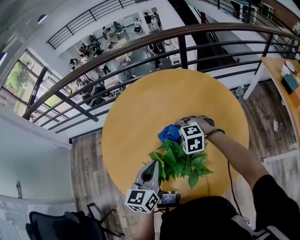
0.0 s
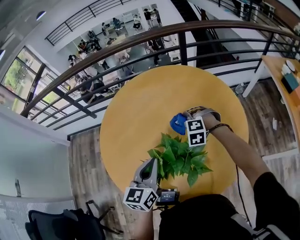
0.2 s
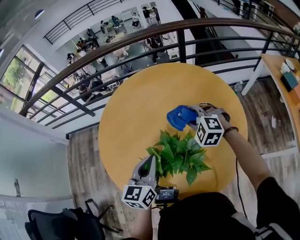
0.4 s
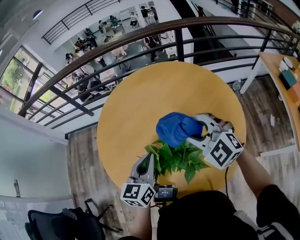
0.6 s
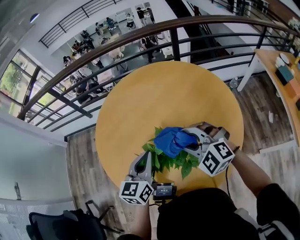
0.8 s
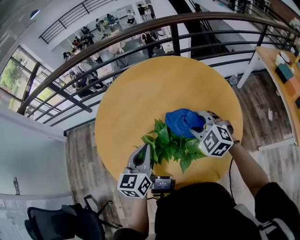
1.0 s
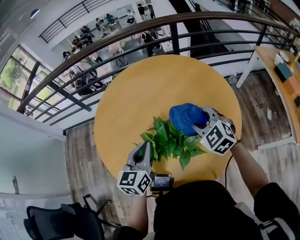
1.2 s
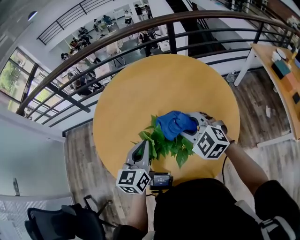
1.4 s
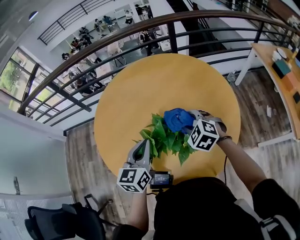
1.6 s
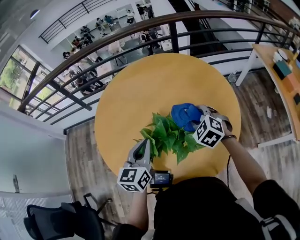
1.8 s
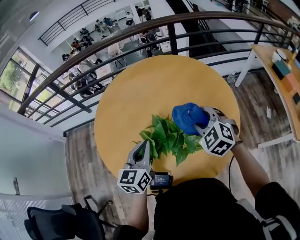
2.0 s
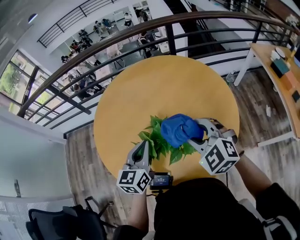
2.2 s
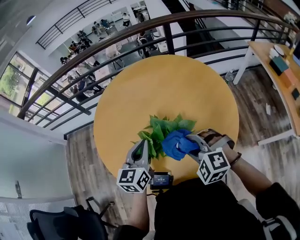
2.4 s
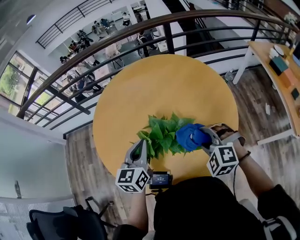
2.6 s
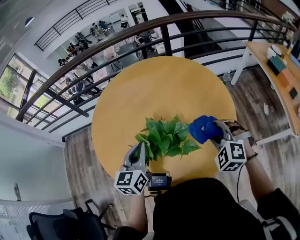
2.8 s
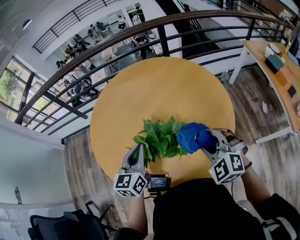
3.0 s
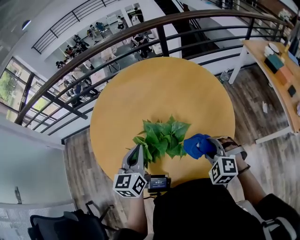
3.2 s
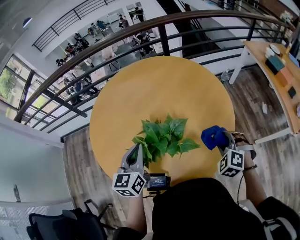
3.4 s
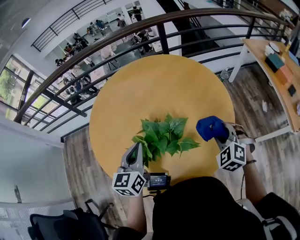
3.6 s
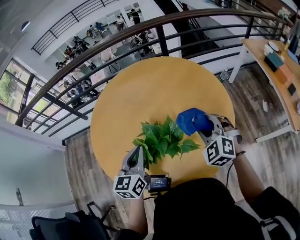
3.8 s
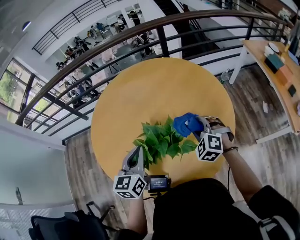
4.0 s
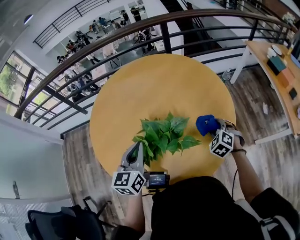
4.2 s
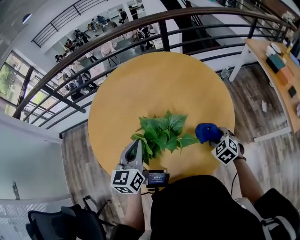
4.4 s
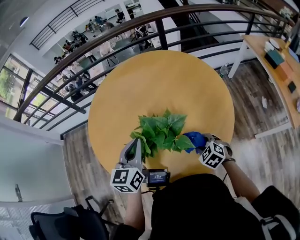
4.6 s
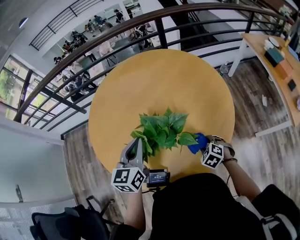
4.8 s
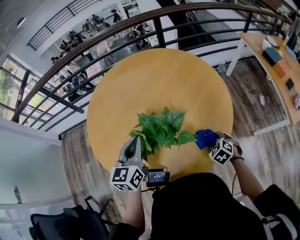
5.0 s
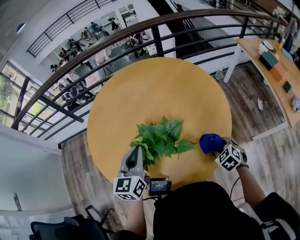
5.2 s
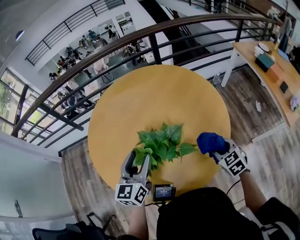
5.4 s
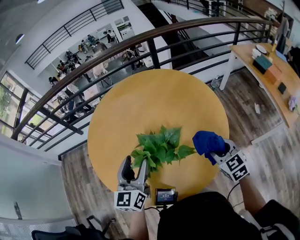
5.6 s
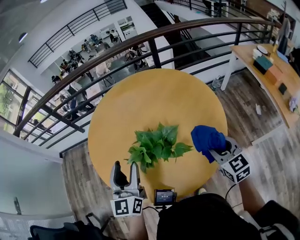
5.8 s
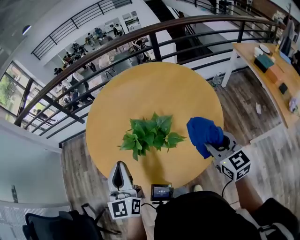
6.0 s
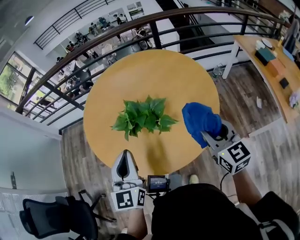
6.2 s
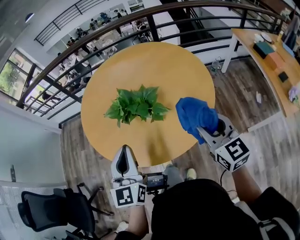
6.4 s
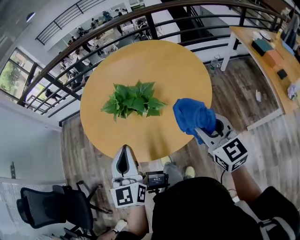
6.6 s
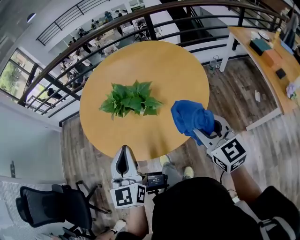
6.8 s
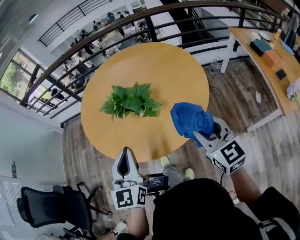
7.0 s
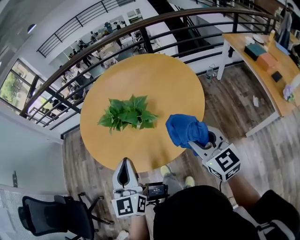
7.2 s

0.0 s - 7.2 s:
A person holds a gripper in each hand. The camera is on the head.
0.0 s - 1.4 s: The right gripper is displaced upward and backward by approximately 15 cm, and swivels roughly 30 degrees.
1.4 s - 2.8 s: The right gripper moves left and right over about 15 cm, changing direction 2 times, and rotates about 30 degrees.
2.8 s - 4.4 s: The right gripper swings up and down, approximately 15 cm each way, with 2 reversals, and changes its angle by some 30 degrees.
4.4 s - 5.8 s: The left gripper moves upward and backward, roughly 10 cm, and opens; the right gripper is displaced upward by approximately 15 cm, and changes its angle by some 40 degrees.
5.8 s - 7.2 s: The left gripper shifts approximately 20 cm backward, and closes; the right gripper moves backward and upward, approximately 20 cm.

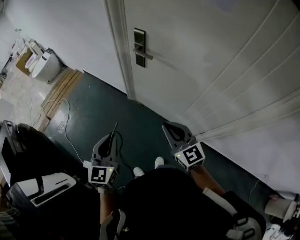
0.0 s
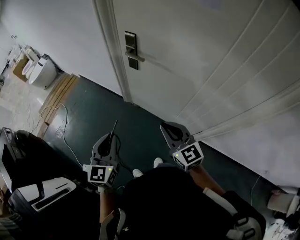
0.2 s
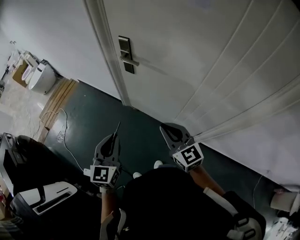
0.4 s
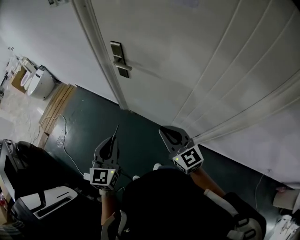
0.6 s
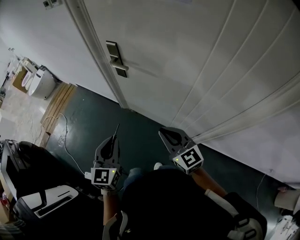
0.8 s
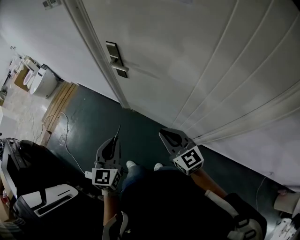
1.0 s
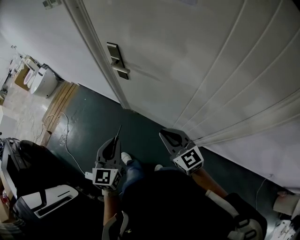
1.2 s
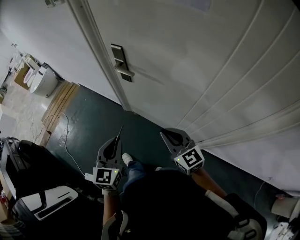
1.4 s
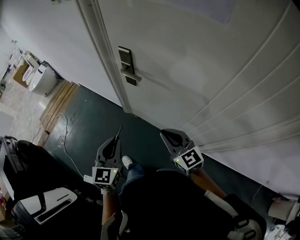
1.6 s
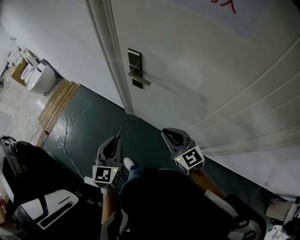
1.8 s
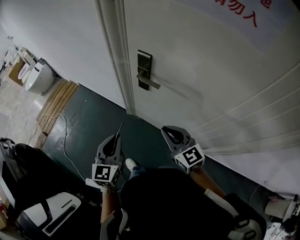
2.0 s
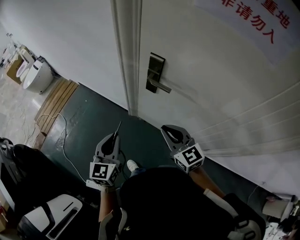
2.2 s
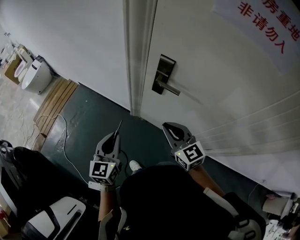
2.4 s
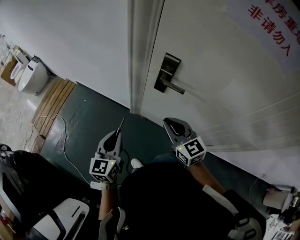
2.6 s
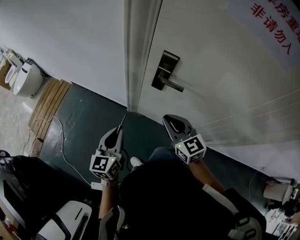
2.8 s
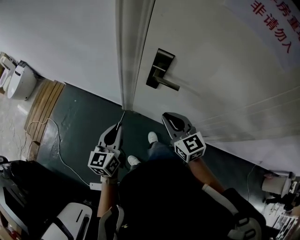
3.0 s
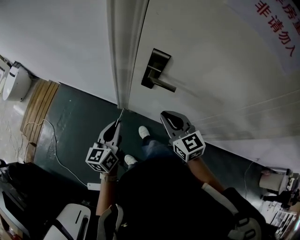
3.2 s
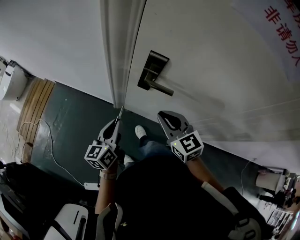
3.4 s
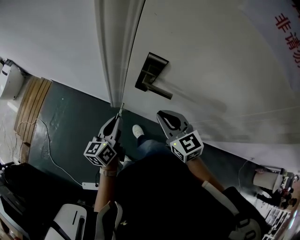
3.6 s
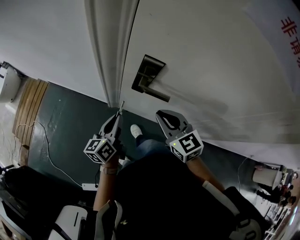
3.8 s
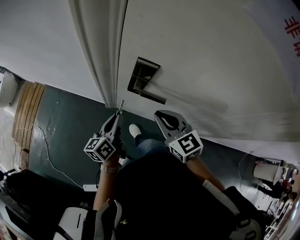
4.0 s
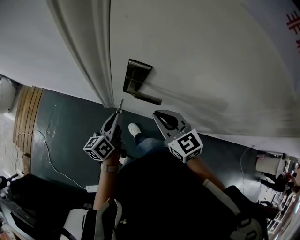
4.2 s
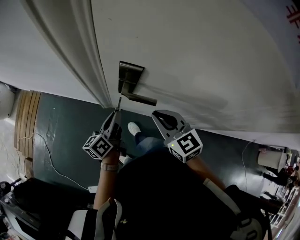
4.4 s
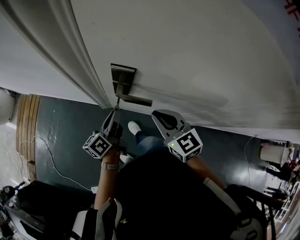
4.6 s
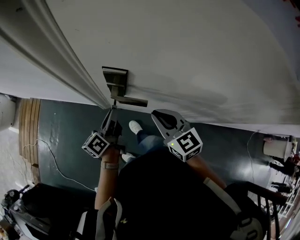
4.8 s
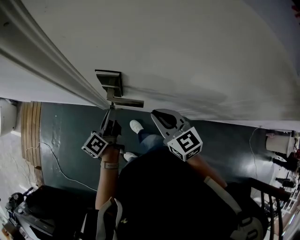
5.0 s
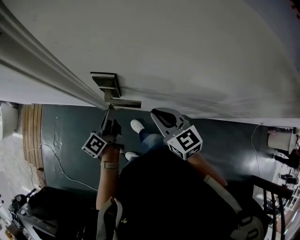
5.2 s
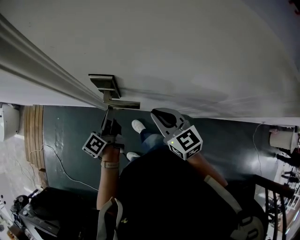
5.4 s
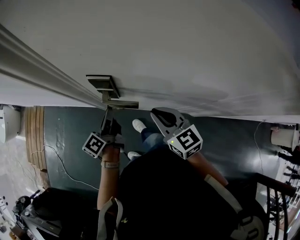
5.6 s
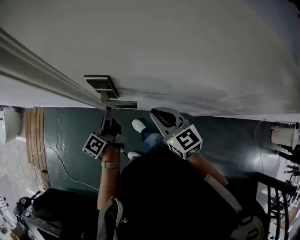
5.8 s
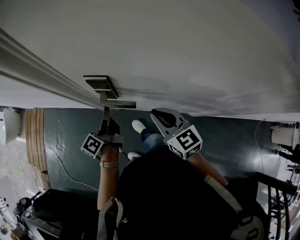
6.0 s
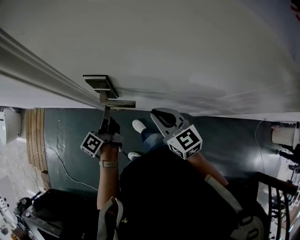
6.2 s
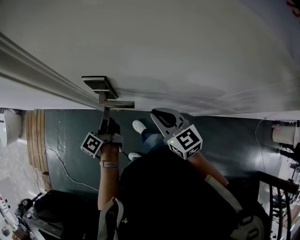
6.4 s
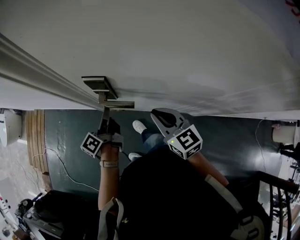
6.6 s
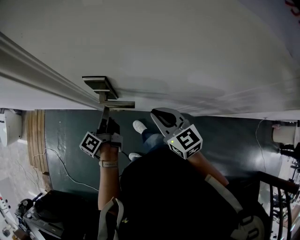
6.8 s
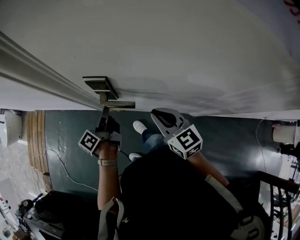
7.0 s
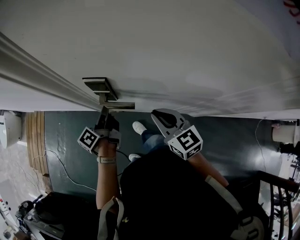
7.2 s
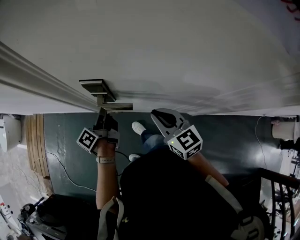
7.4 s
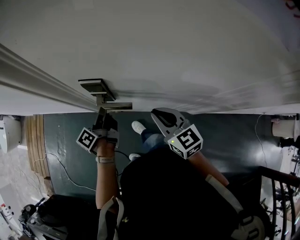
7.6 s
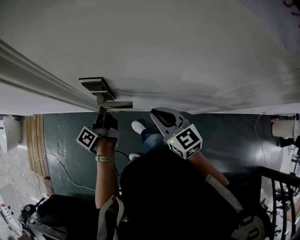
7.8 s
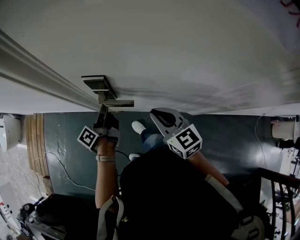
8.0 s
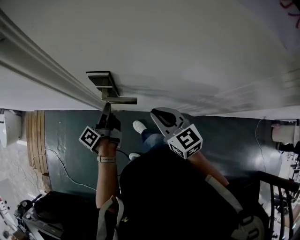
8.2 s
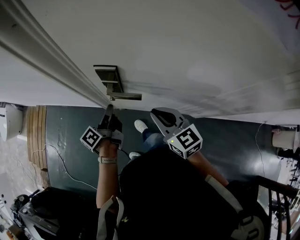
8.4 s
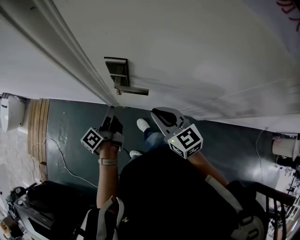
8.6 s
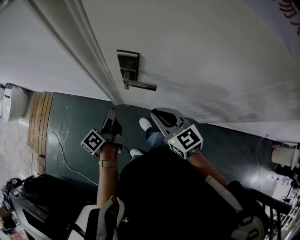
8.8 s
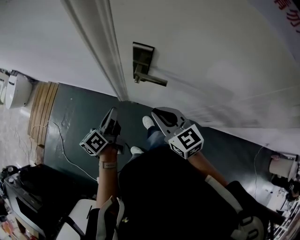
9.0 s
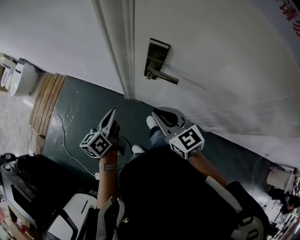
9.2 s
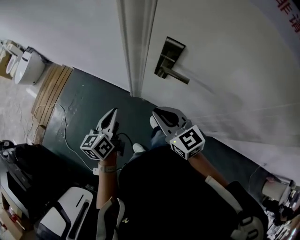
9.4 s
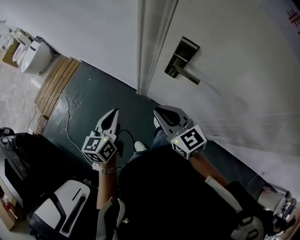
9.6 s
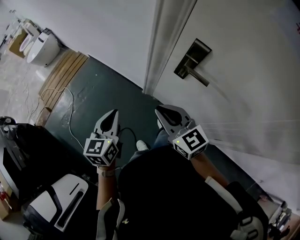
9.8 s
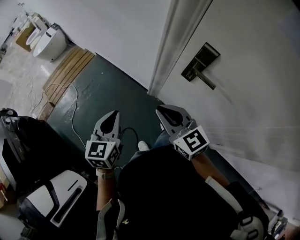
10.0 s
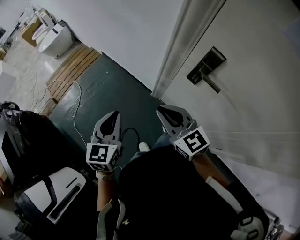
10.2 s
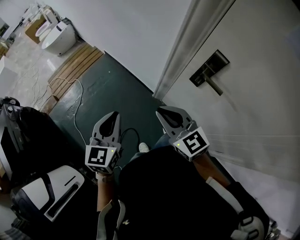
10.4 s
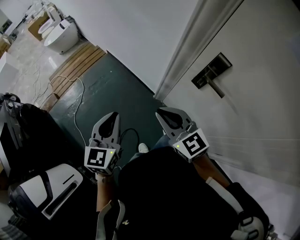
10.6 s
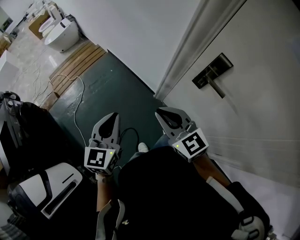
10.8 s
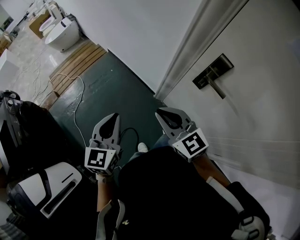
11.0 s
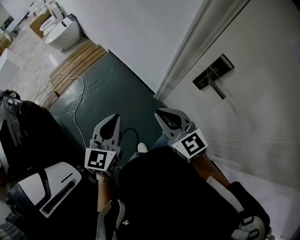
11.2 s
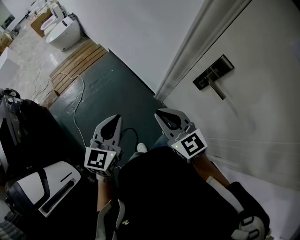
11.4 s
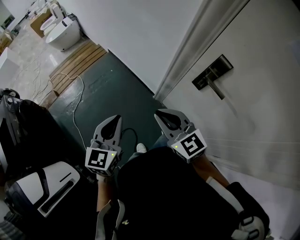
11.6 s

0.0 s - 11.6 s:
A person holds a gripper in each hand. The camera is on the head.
0.0 s - 1.4 s: The two grippers go approximately 15 cm to the right and forward.
1.4 s - 2.8 s: Both grippers move to the left and forward, about 30 cm. The left gripper changes its angle by approximately 20 degrees.
2.8 s - 4.4 s: The left gripper shifts approximately 25 cm forward, to the right and downward, and changes its angle by approximately 40 degrees. The right gripper travels forward and to the right by roughly 15 cm.
4.4 s - 5.8 s: The right gripper is displaced to the right by roughly 5 cm.
5.8 s - 7.2 s: The grippers stay close to where they were, moving slightly.
7.2 s - 8.8 s: The left gripper goes approximately 10 cm backward and to the left; the right gripper shifts some 10 cm to the left.
8.8 s - 10.2 s: The right gripper shifts by approximately 25 cm, and changes its angle by approximately 30 degrees, while the left gripper moves approximately 30 cm, and rotates around the line of its fingers by roughly 60 degrees, clockwise from behind.
10.2 s - 11.6 s: There are only small adjustments of the grippers.

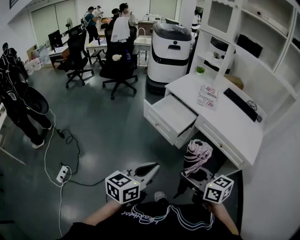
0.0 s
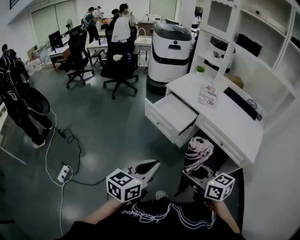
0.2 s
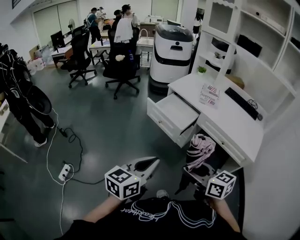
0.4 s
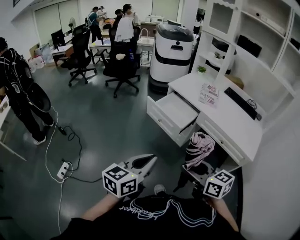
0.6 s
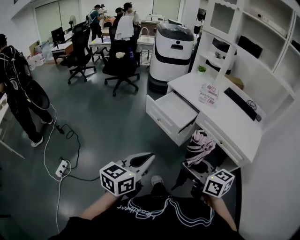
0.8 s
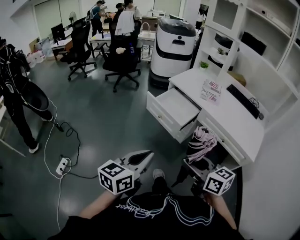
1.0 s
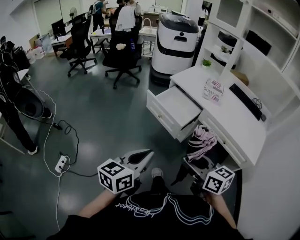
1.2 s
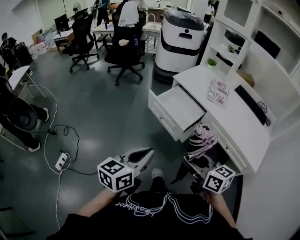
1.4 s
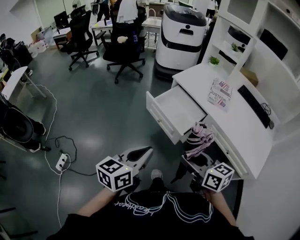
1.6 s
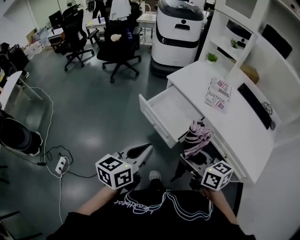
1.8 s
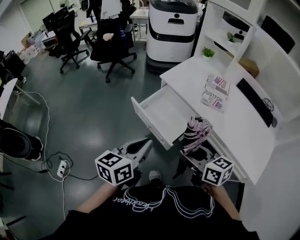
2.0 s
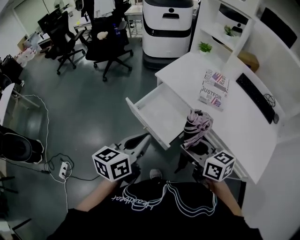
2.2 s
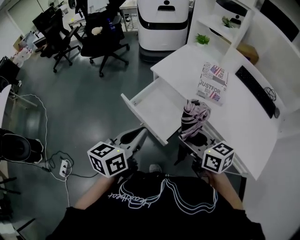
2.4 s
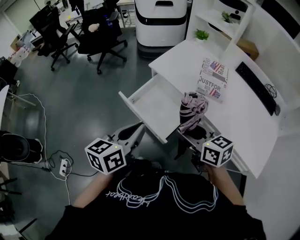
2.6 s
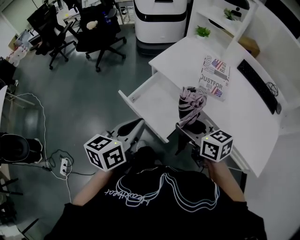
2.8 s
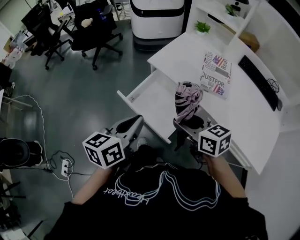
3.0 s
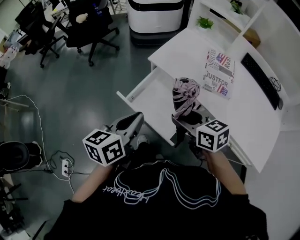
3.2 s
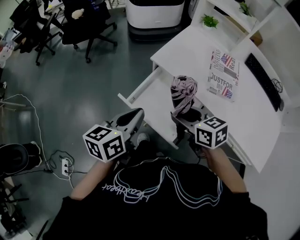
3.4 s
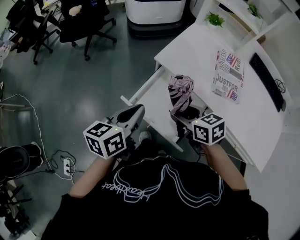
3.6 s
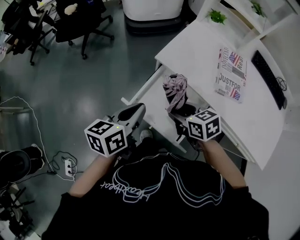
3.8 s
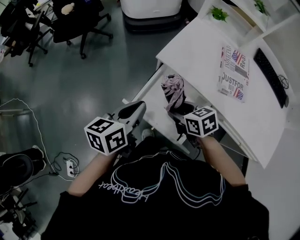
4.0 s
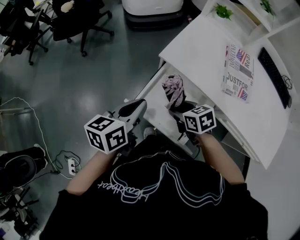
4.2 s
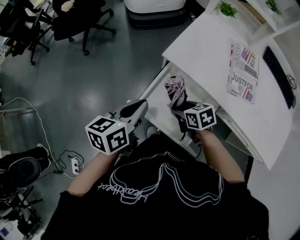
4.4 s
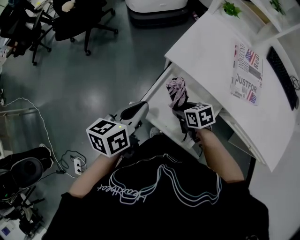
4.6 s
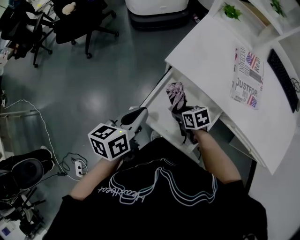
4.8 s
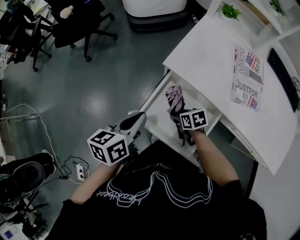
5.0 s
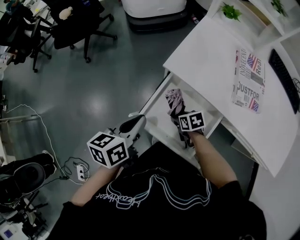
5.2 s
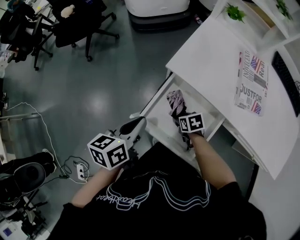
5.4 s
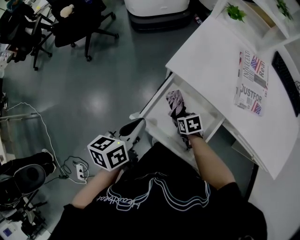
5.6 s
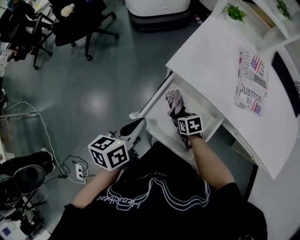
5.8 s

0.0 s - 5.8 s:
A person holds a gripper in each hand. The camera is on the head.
0.0 s - 1.4 s: The grippers both shift forward by some 10 cm.
1.4 s - 2.8 s: Both grippers travel together forward, approximately 30 cm.
2.8 s - 4.4 s: The right gripper is displaced downward, forward and to the left by roughly 30 cm, and turns by some 30 degrees; the left gripper shifts approximately 20 cm forward and downward.
4.4 s - 5.8 s: The right gripper is displaced downward by some 15 cm; the left gripper is displaced downward by some 5 cm.
